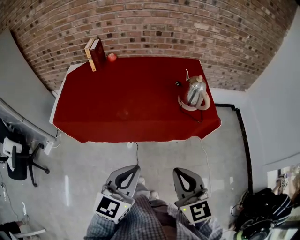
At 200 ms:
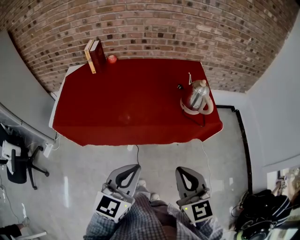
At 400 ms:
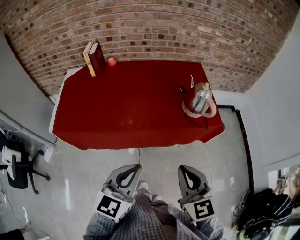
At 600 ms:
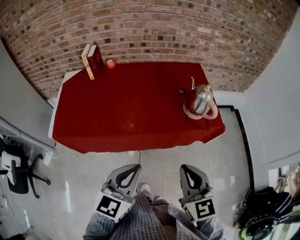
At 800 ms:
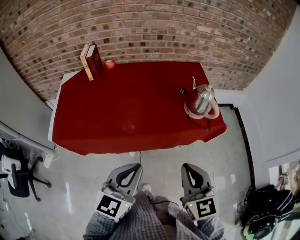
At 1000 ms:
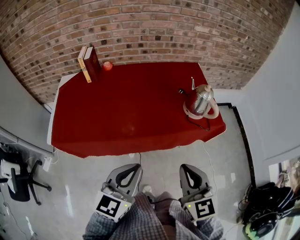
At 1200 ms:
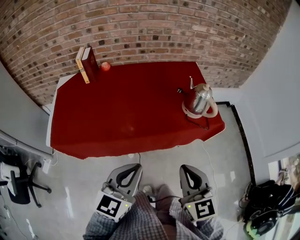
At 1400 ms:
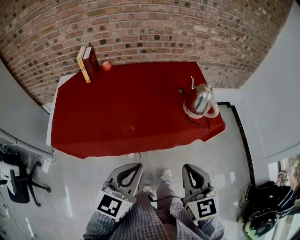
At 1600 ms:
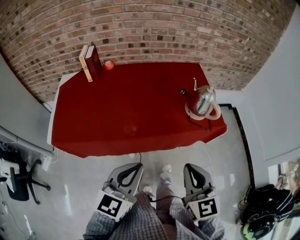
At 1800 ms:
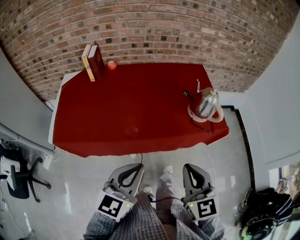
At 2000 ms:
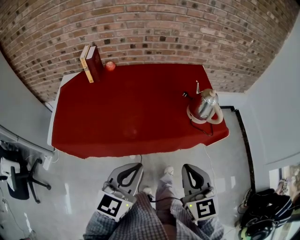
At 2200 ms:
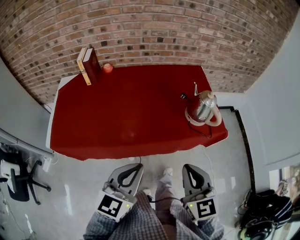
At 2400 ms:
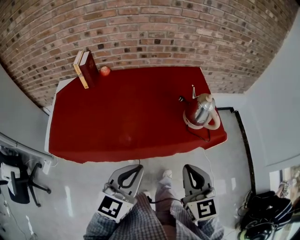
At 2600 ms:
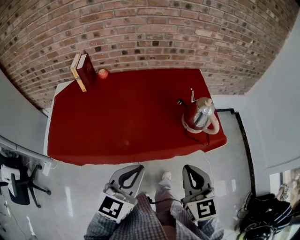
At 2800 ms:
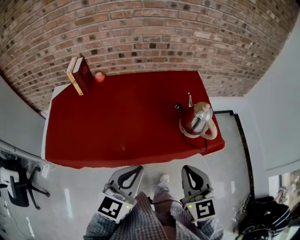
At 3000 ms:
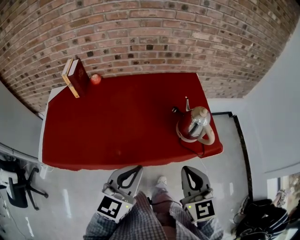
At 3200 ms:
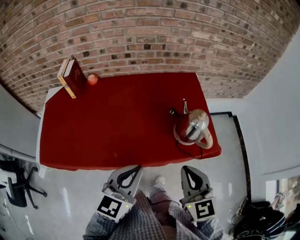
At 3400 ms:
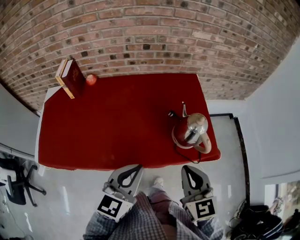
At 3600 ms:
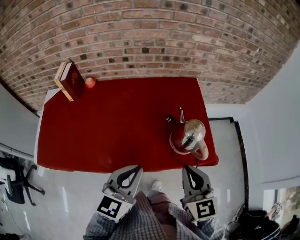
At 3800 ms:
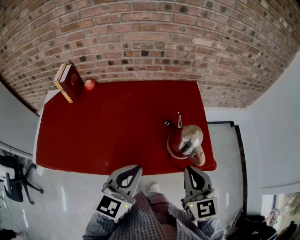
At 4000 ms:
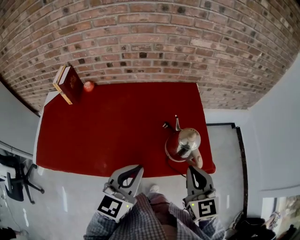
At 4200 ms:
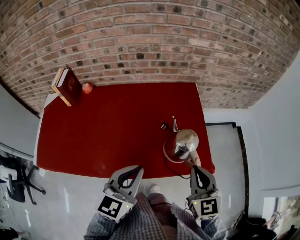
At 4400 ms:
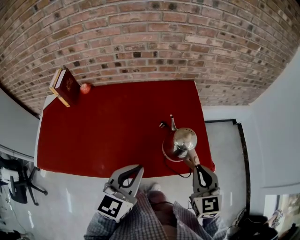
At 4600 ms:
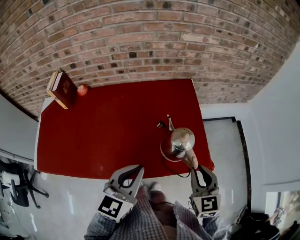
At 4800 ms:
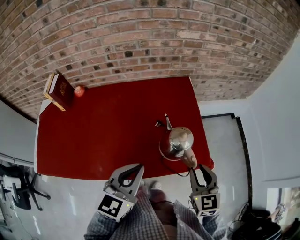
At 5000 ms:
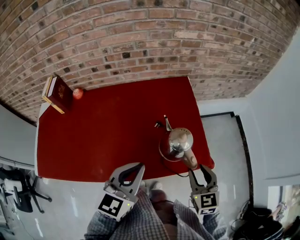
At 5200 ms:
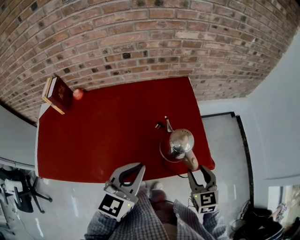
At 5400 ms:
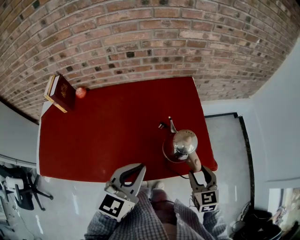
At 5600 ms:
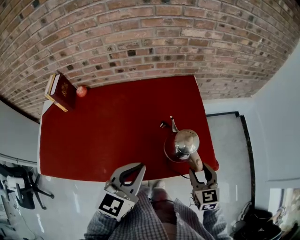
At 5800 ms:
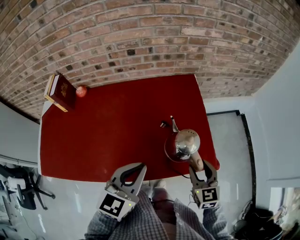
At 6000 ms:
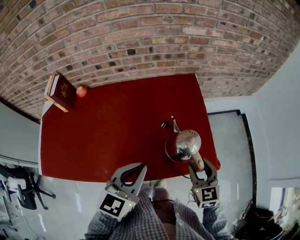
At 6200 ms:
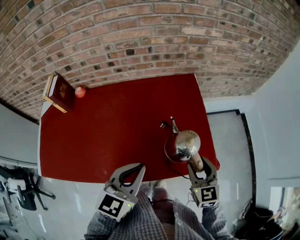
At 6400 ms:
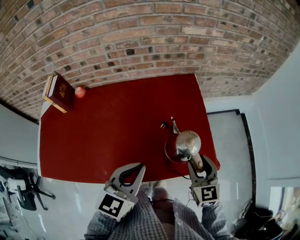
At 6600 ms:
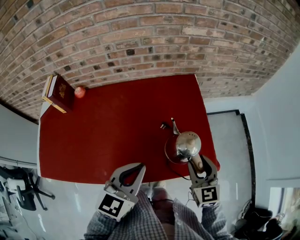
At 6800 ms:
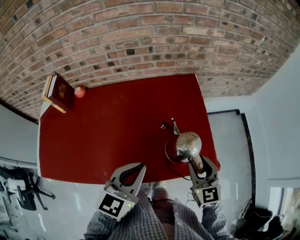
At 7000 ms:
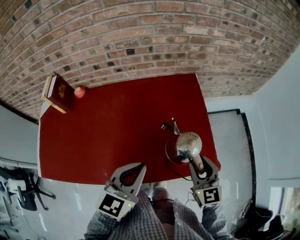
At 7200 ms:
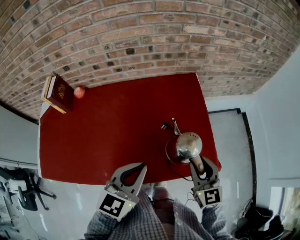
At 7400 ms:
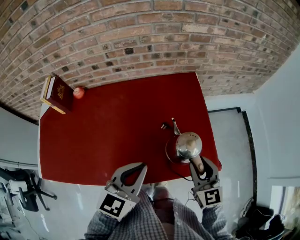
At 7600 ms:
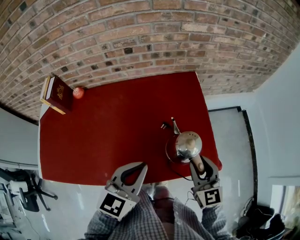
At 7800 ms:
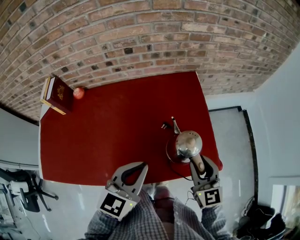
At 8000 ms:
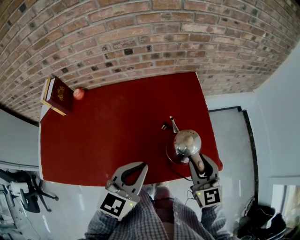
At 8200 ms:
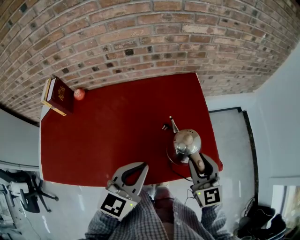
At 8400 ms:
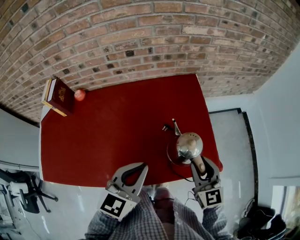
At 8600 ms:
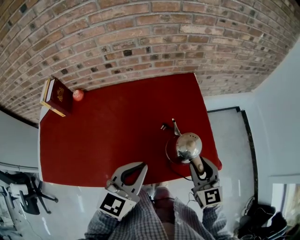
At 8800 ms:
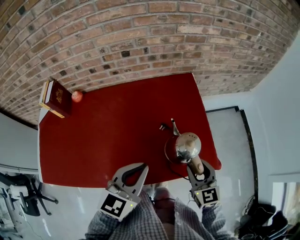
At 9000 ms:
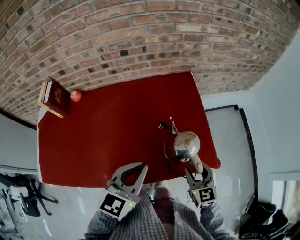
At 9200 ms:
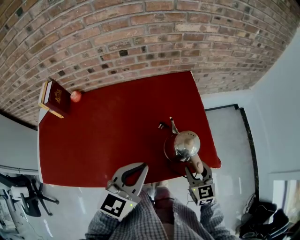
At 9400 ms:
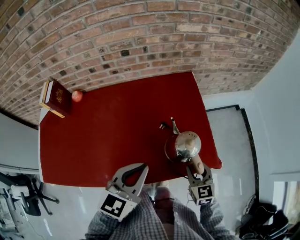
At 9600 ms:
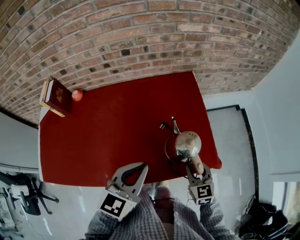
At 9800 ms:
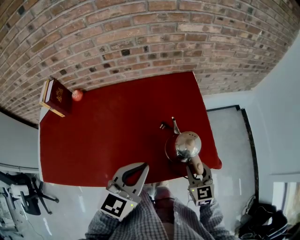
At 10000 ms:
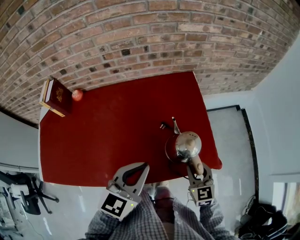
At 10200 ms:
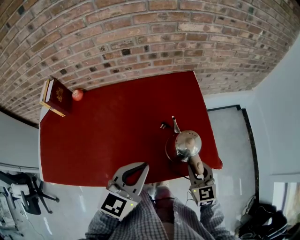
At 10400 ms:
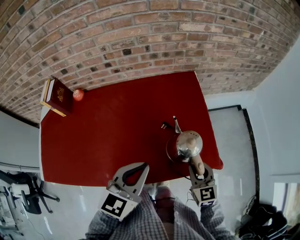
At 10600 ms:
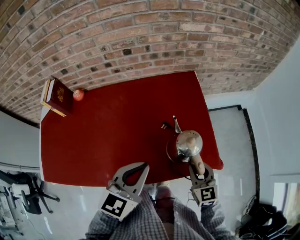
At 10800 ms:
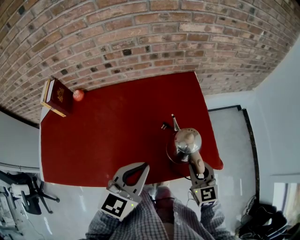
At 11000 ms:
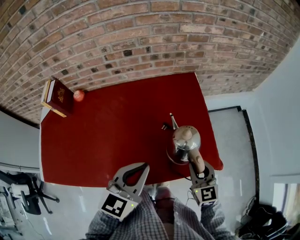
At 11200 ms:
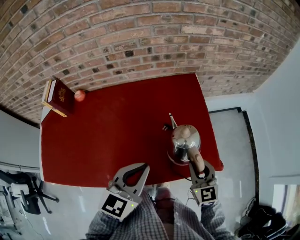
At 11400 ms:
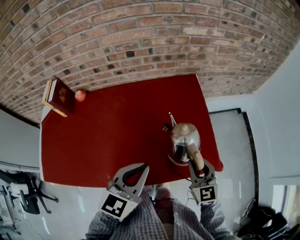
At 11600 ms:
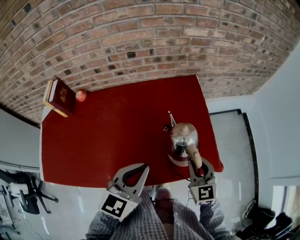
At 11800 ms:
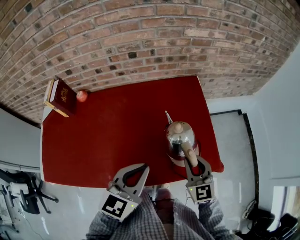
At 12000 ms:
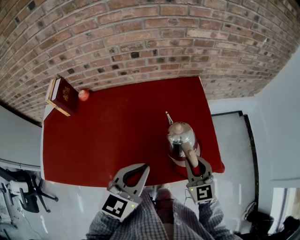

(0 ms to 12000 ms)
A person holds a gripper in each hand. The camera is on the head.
0 ms - 1600 ms: The two grippers go approximately 10 cm forward and to the left.
1600 ms - 3000 ms: The left gripper heads forward and to the right, covering approximately 15 cm, while the right gripper goes approximately 15 cm forward.
3000 ms - 4400 ms: The left gripper shifts roughly 15 cm forward and to the right. The right gripper is displaced to the right and forward by roughly 20 cm.
4400 ms - 6000 ms: The right gripper is displaced downward by approximately 10 cm, and opens up.
6000 ms - 7600 ms: The grippers stay close to where they were, moving slightly.
7600 ms - 9000 ms: The right gripper shifts approximately 5 cm downward.
9000 ms - 10400 ms: The right gripper closes up.
10400 ms - 12000 ms: The right gripper is displaced upward and to the left by approximately 5 cm.

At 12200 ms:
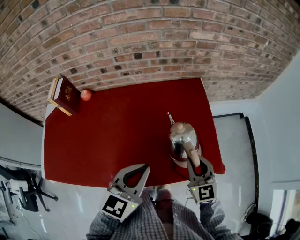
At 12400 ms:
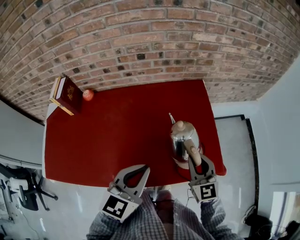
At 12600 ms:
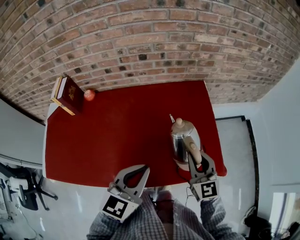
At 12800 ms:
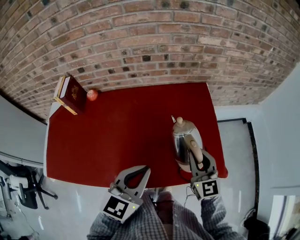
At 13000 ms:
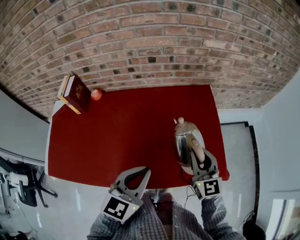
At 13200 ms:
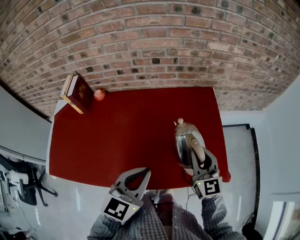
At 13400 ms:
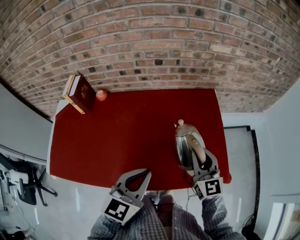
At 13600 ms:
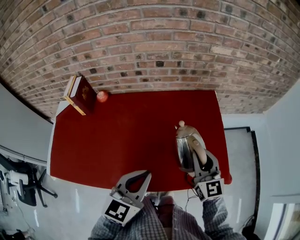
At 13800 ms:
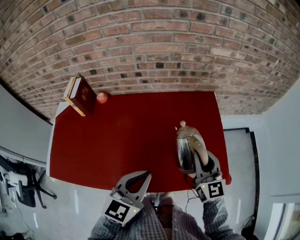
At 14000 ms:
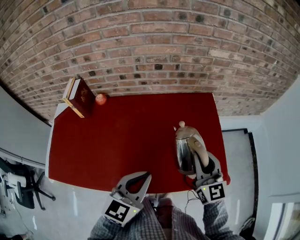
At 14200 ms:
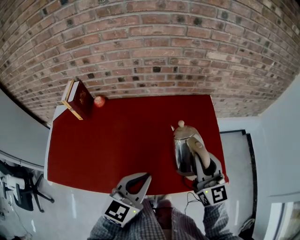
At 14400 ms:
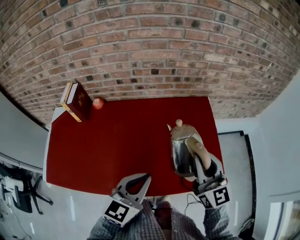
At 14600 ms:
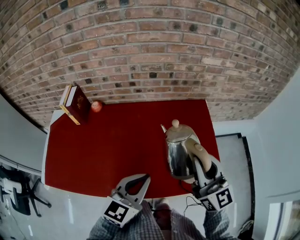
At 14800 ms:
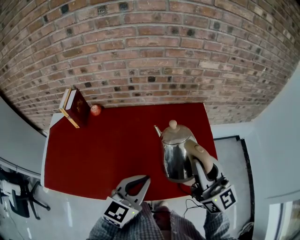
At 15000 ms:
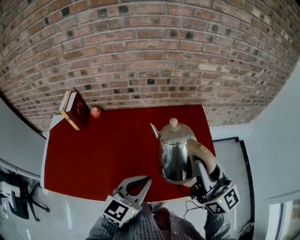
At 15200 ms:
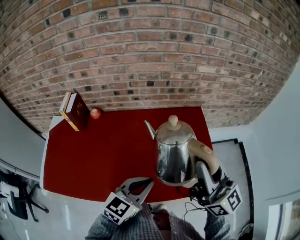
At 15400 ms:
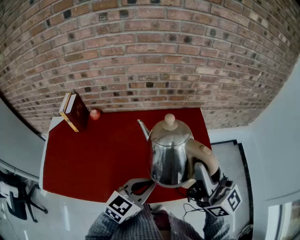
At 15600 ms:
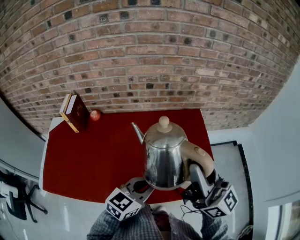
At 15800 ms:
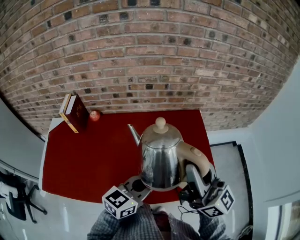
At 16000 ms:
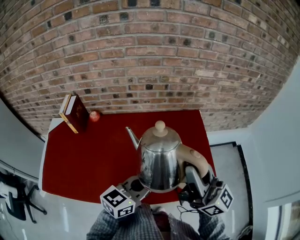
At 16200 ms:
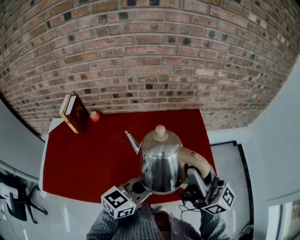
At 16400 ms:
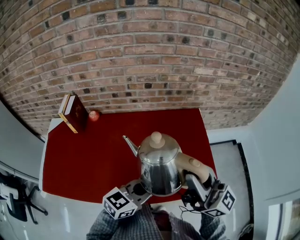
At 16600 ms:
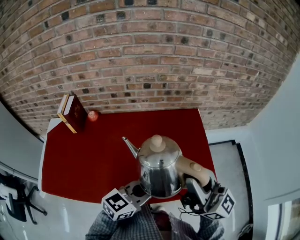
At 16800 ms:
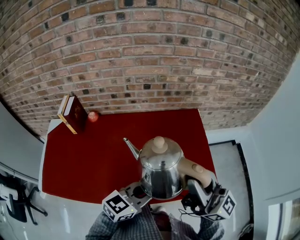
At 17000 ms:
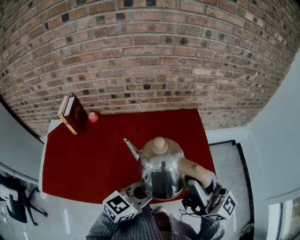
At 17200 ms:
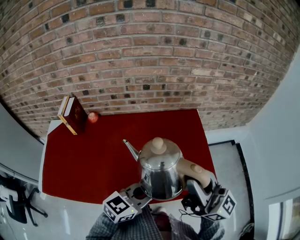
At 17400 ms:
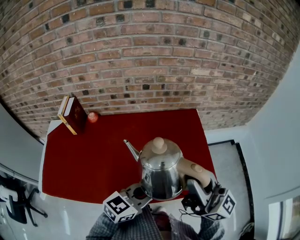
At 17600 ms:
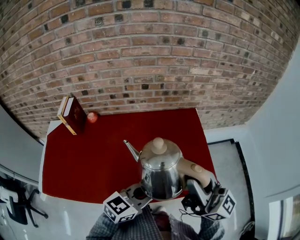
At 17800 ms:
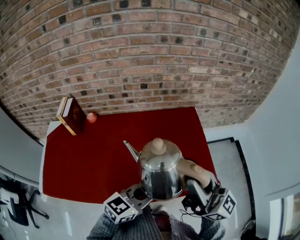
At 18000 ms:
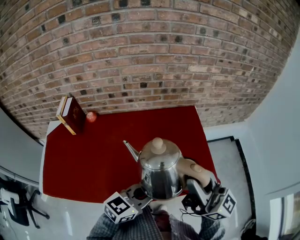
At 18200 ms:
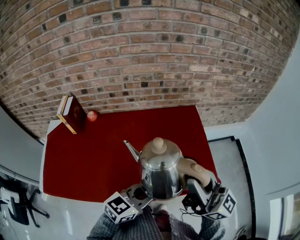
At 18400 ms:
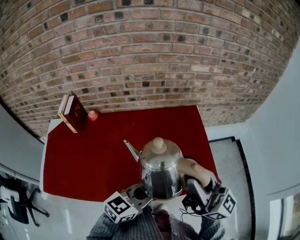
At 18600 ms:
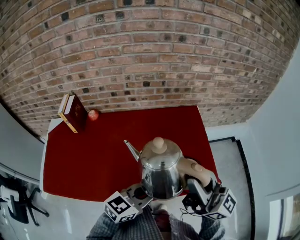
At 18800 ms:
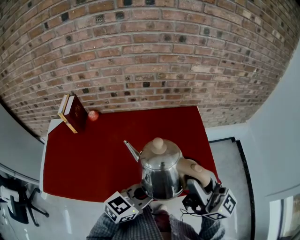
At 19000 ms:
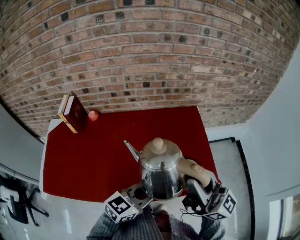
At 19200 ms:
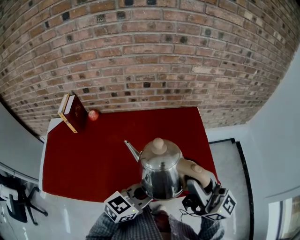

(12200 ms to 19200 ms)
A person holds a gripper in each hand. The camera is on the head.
12200 ms - 13600 ms: The left gripper heads to the left, covering about 5 cm; the right gripper moves upward and to the left, some 10 cm.
13600 ms - 15000 ms: The right gripper moves upward, some 15 cm, and turns by approximately 30 degrees.
15000 ms - 16400 ms: The left gripper changes its angle by approximately 20 degrees, while the right gripper moves about 5 cm.
16400 ms - 17800 ms: The grippers stay close to where they were, moving slightly.
17800 ms - 19200 ms: Both grippers stay about where they are.

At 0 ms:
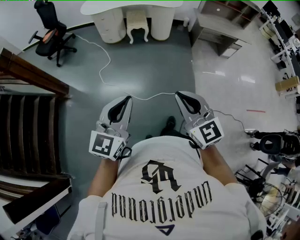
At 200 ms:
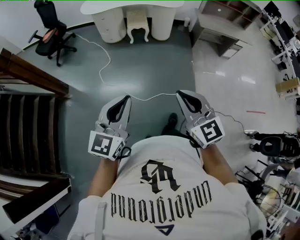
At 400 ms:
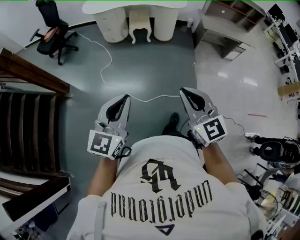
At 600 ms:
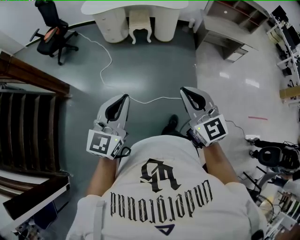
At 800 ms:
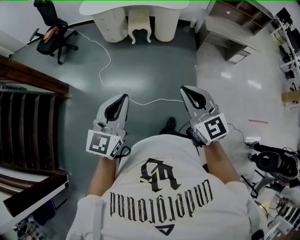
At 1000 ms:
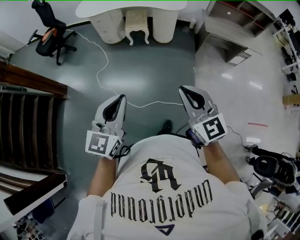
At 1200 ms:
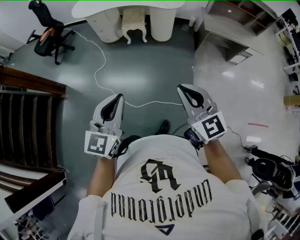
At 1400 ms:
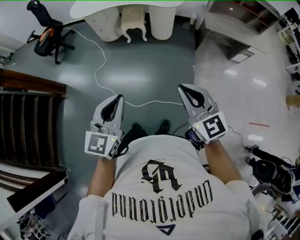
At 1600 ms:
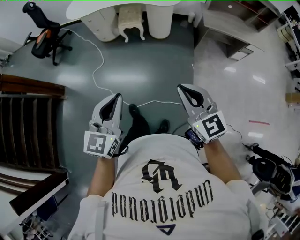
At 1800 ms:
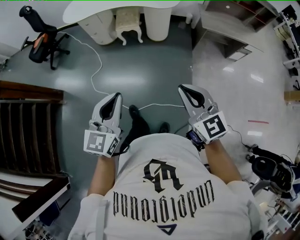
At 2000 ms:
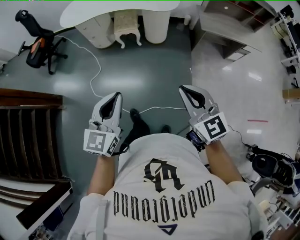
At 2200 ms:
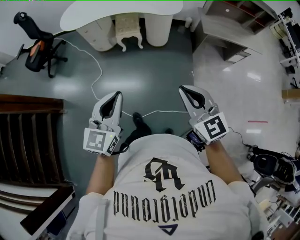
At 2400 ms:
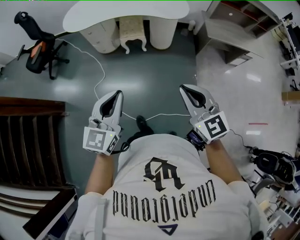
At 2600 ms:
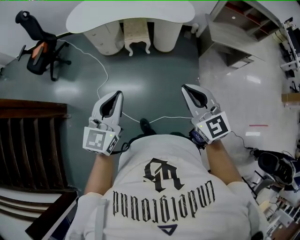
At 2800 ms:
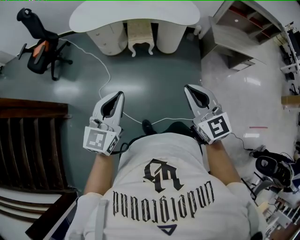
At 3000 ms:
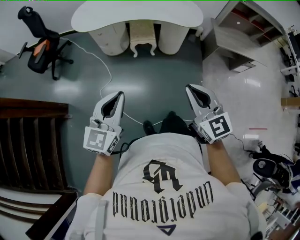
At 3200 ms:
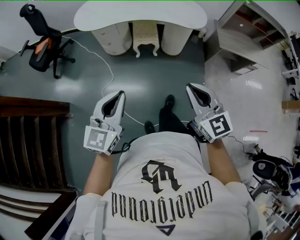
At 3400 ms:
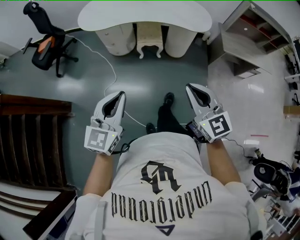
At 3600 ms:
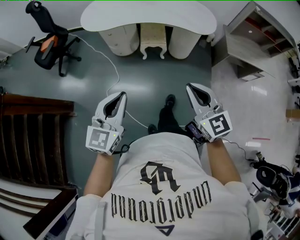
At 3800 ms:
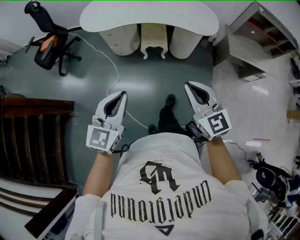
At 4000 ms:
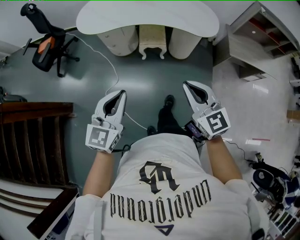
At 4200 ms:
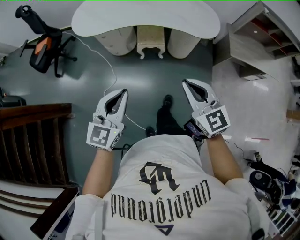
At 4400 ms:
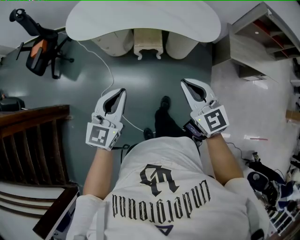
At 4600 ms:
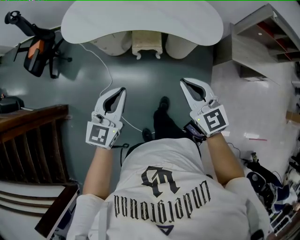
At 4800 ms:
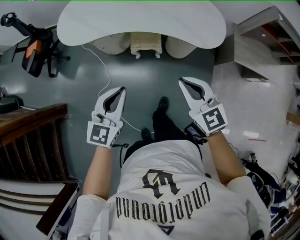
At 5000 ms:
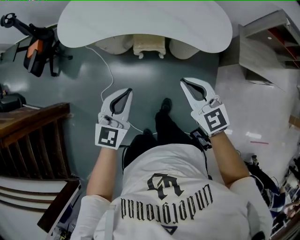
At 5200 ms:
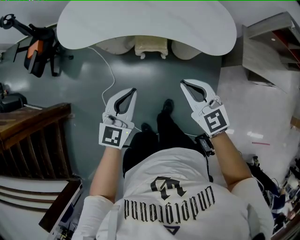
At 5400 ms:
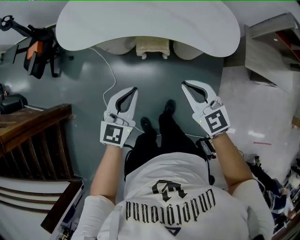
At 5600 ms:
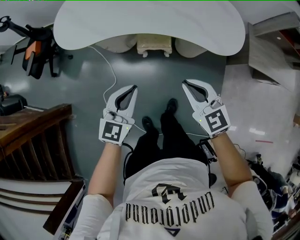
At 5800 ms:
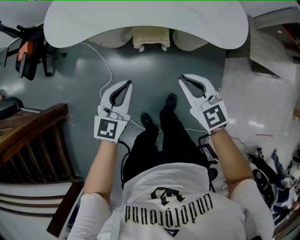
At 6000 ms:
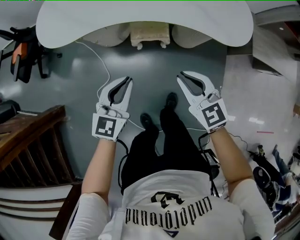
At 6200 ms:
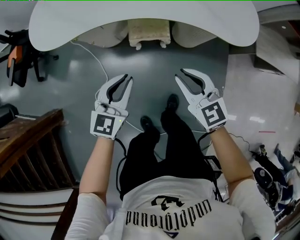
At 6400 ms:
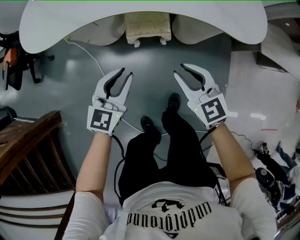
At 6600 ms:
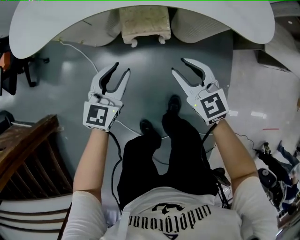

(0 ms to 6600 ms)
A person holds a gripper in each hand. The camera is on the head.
0 ms - 1600 ms: Both grippers move forward and to the right, roughly 35 cm.
1600 ms - 3200 ms: The grippers both shift forward and to the left by roughly 30 cm.
3200 ms - 5000 ms: The two grippers go roughly 35 cm forward.
5000 ms - 6600 ms: The right gripper shifts roughly 35 cm downward, and opens; the left gripper travels downward and forward by roughly 35 cm, and opens.
